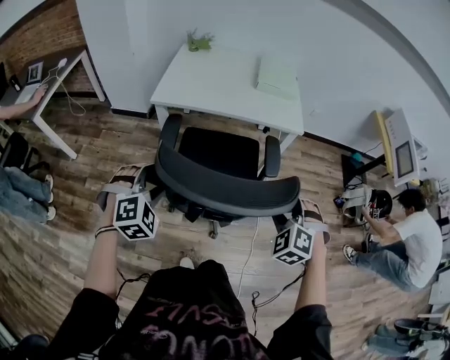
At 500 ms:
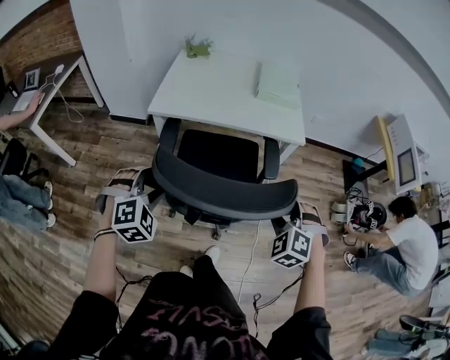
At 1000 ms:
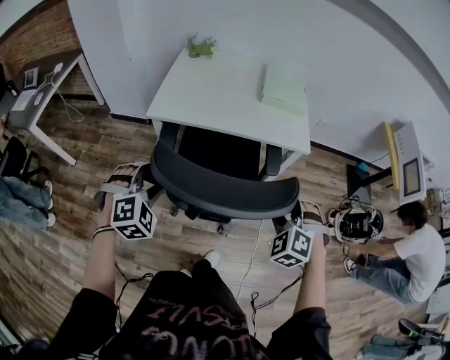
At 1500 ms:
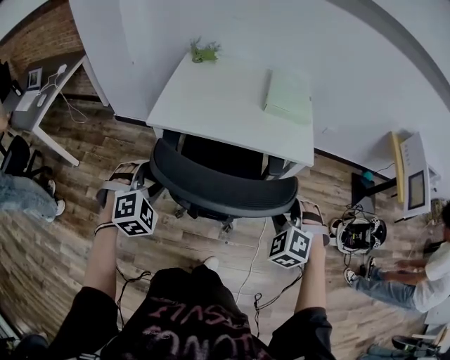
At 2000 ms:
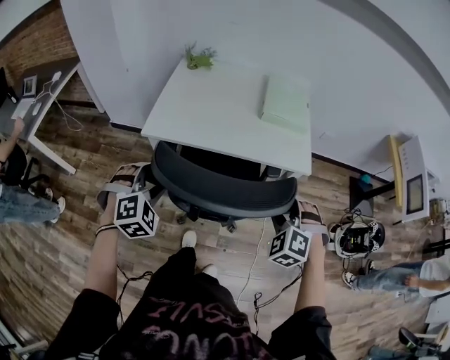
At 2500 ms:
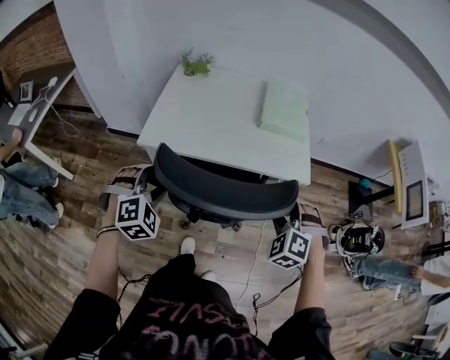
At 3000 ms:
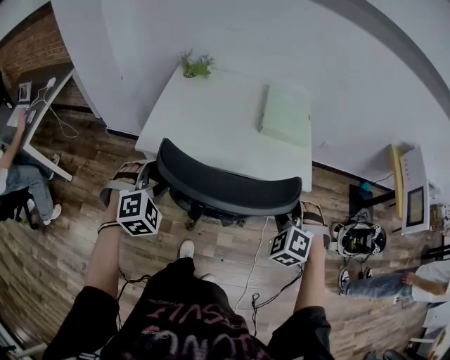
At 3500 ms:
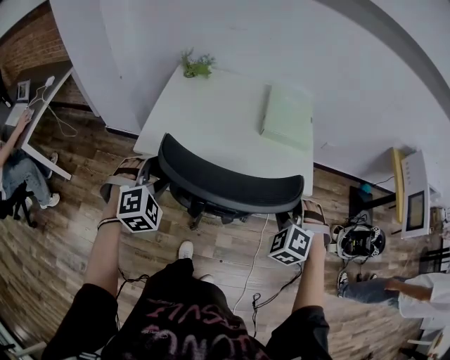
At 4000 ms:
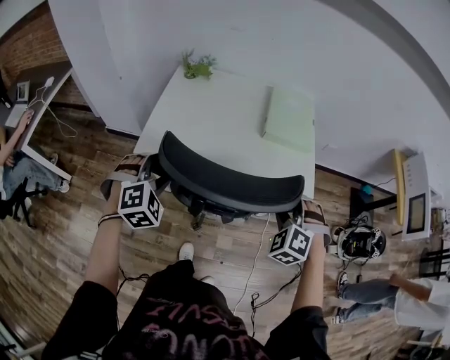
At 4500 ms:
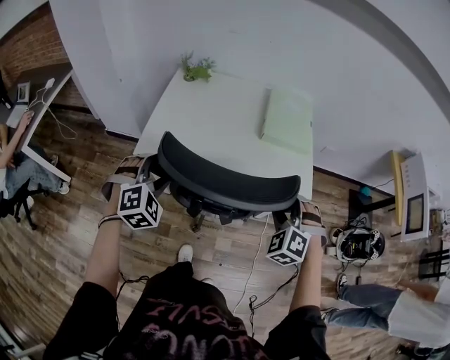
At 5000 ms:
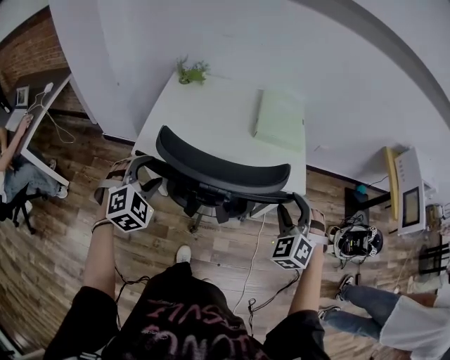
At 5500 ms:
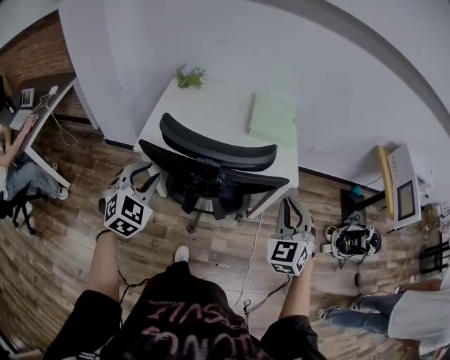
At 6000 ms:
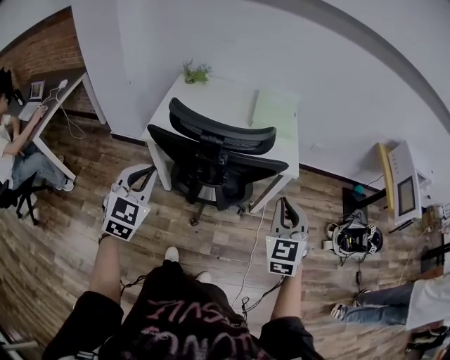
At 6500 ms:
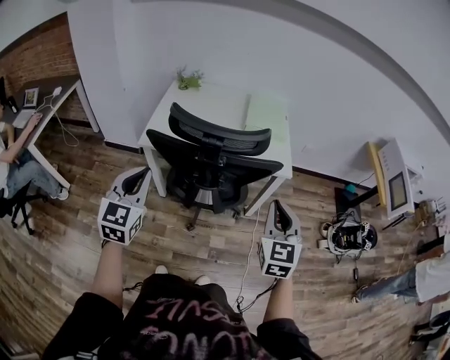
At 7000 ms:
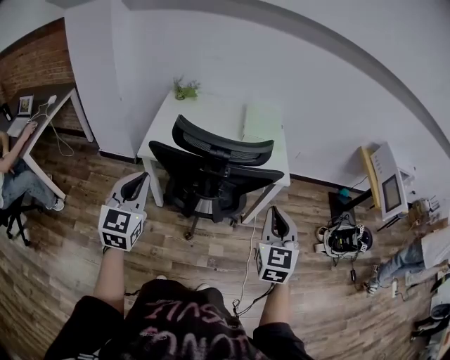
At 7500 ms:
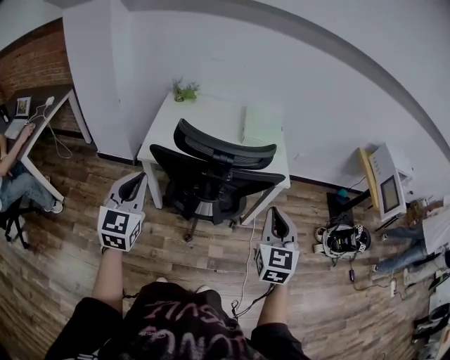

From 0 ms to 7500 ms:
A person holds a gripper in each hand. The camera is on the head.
From 0 ms to 2000 ms: The two grippers go roughly 20 cm forward.
From 2000 ms to 4000 ms: Both grippers move forward, approximately 15 cm.
From 4000 ms to 5500 ms: The right gripper travels backward, upward and to the right by some 15 cm, turns by roughly 40 degrees, and closes its fingers; the left gripper moves backward and upward, approximately 10 cm, turns by roughly 30 degrees, and closes its fingers.
From 5500 ms to 7500 ms: The right gripper travels backward and to the left by some 10 cm, and swivels about 30 degrees, while the left gripper moves backward, upward and to the left, about 10 cm, turns by about 40 degrees, and closes its fingers.

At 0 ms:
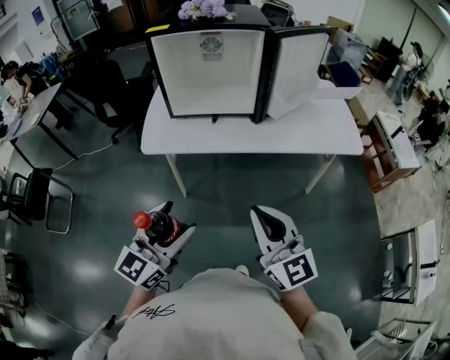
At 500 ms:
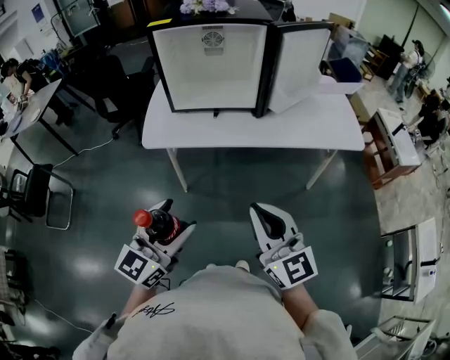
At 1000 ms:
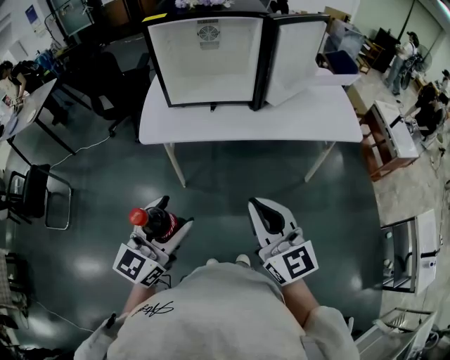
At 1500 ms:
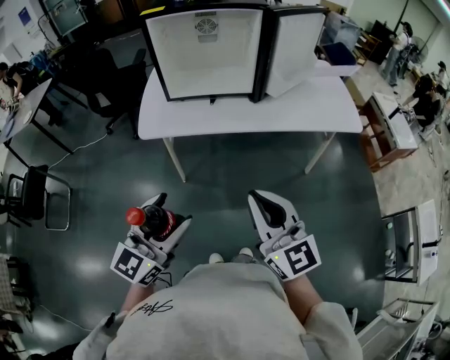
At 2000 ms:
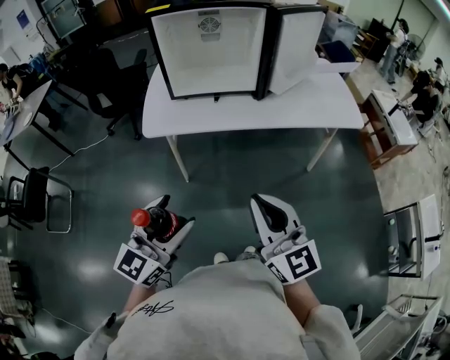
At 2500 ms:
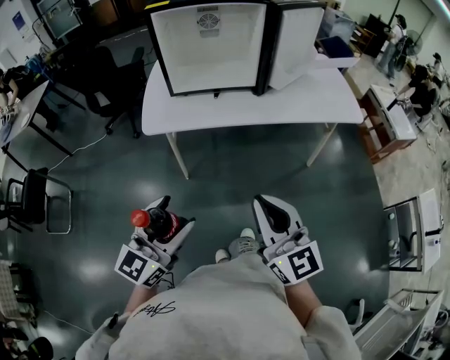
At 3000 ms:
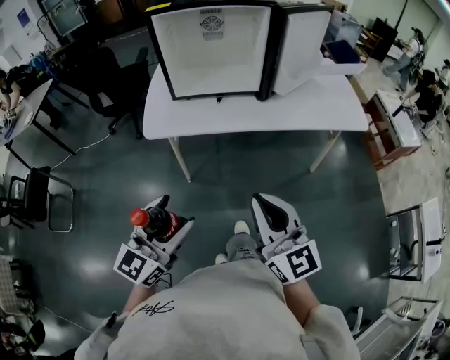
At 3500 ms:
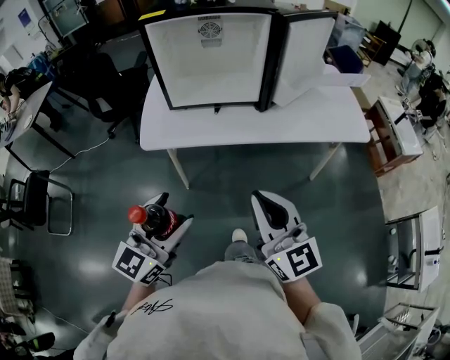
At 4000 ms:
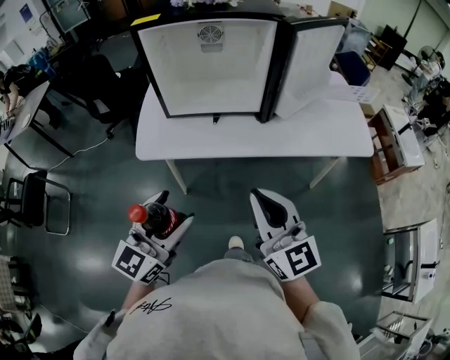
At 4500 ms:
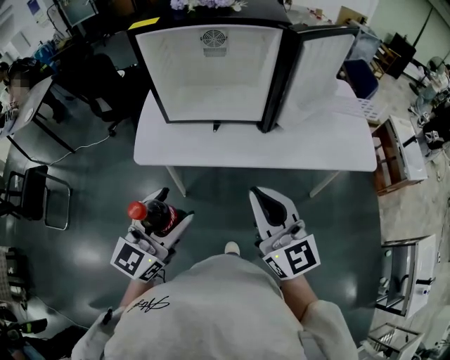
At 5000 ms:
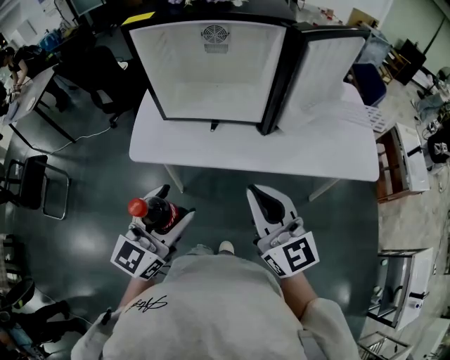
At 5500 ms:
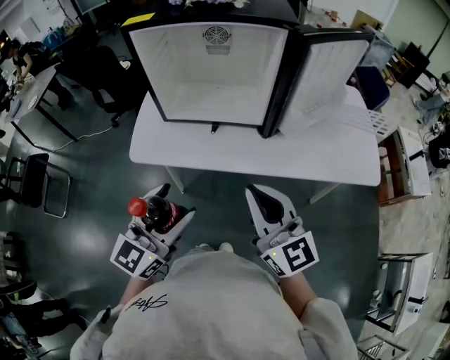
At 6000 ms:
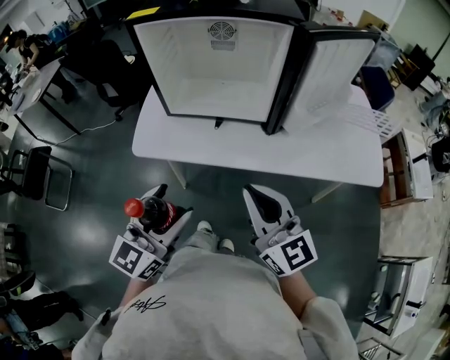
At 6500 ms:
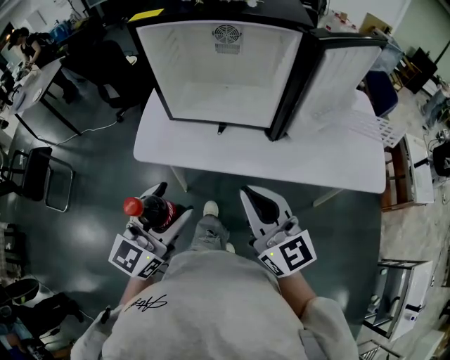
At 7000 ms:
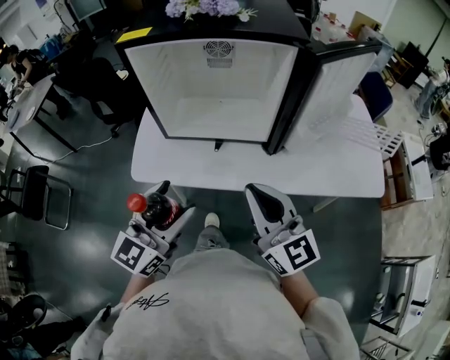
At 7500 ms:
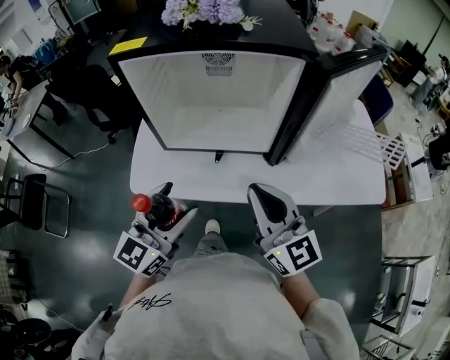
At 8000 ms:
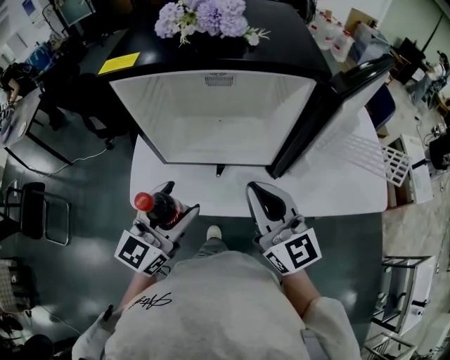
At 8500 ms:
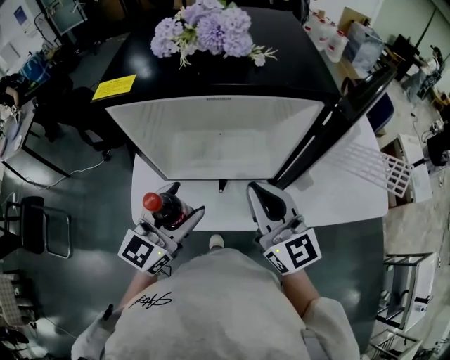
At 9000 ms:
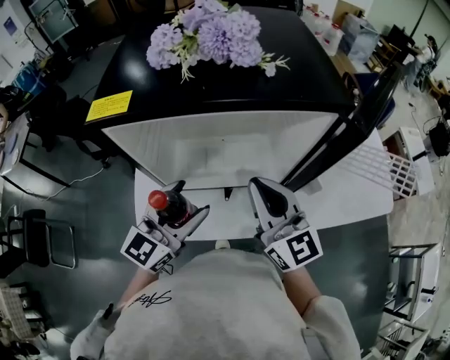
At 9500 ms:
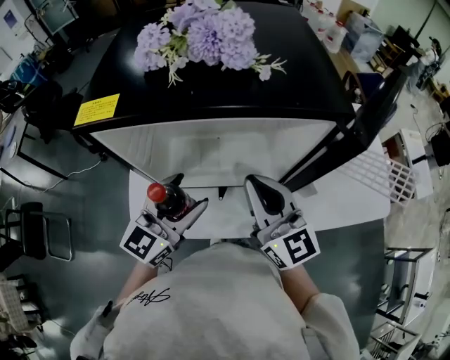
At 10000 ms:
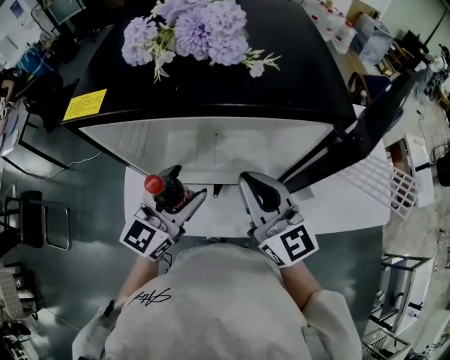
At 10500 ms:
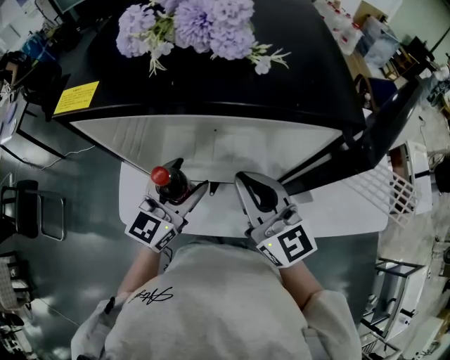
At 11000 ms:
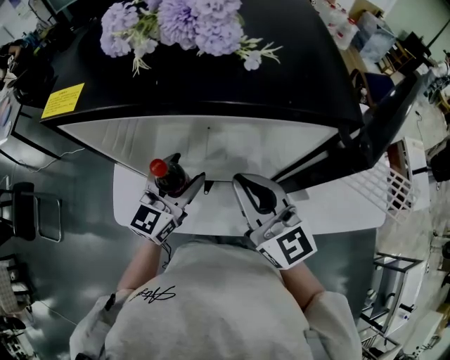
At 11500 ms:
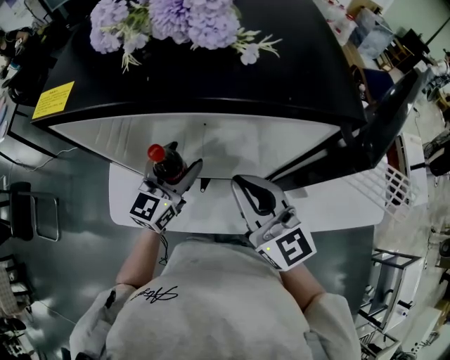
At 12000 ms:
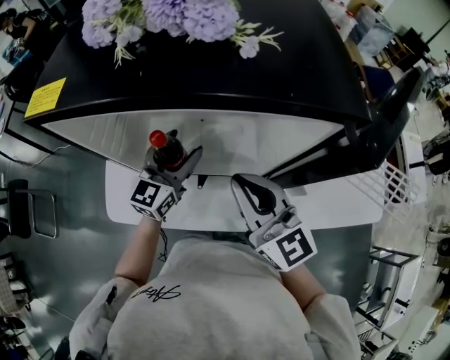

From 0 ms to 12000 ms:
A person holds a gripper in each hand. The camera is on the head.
From 0 ms to 2000 ms: The left gripper ends up about 5 cm from where it was. The right gripper moves approximately 5 cm.
From 2000 ms to 4000 ms: Both grippers move forward, roughly 15 cm.
From 4000 ms to 6000 ms: Both grippers move forward, about 5 cm.
From 6000 ms to 8000 ms: Both grippers travel together forward, approximately 20 cm.
From 8000 ms to 10000 ms: The two grippers go roughly 10 cm forward.
From 10000 ms to 12000 ms: The left gripper travels forward and downward by some 15 cm.

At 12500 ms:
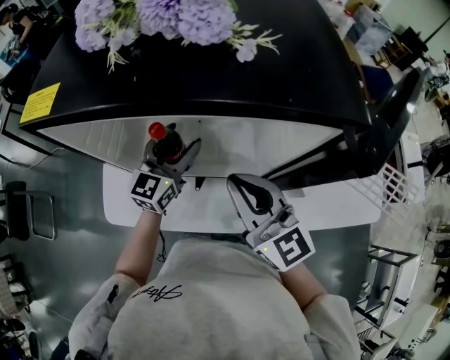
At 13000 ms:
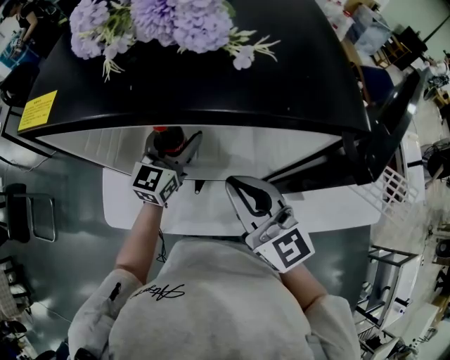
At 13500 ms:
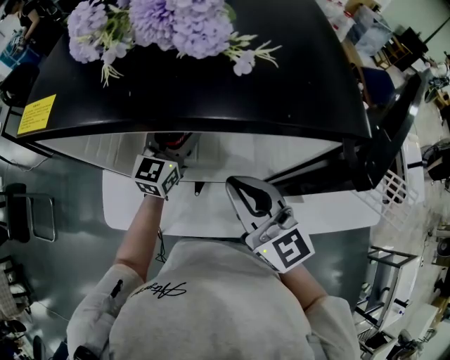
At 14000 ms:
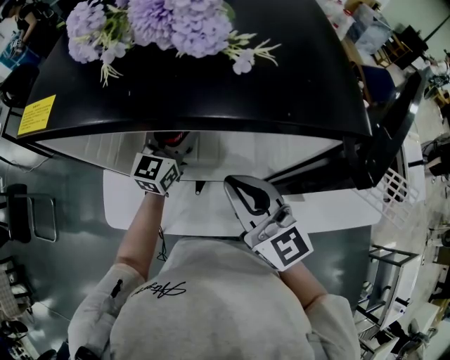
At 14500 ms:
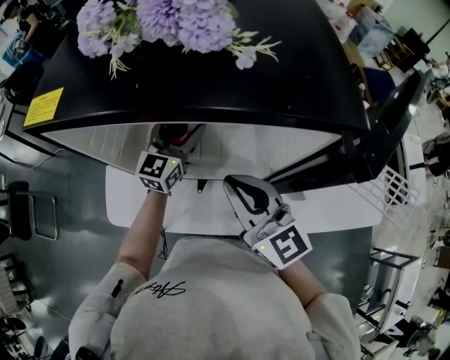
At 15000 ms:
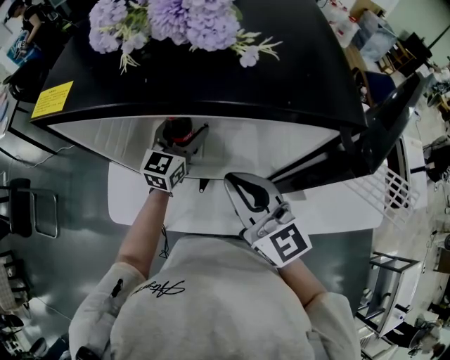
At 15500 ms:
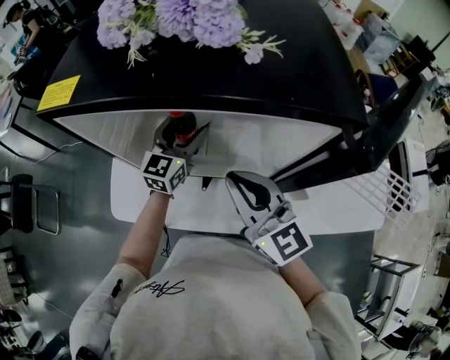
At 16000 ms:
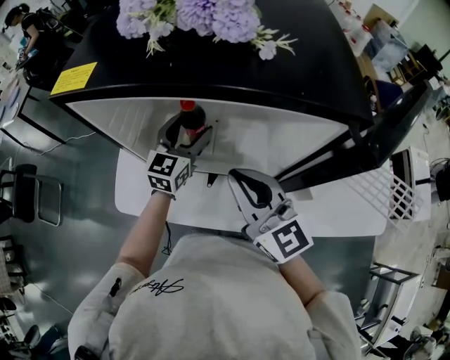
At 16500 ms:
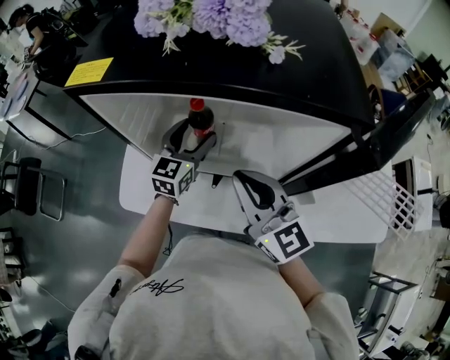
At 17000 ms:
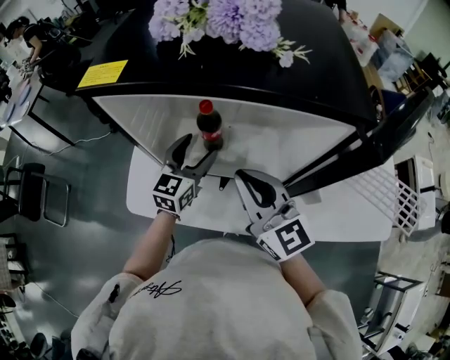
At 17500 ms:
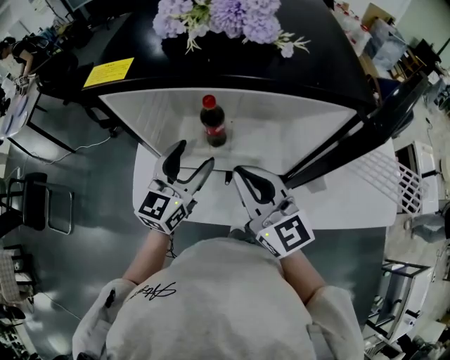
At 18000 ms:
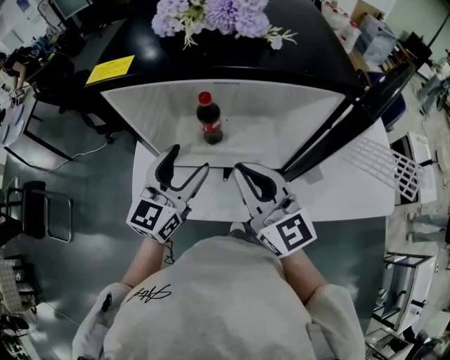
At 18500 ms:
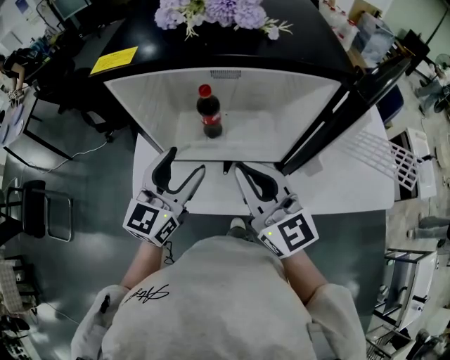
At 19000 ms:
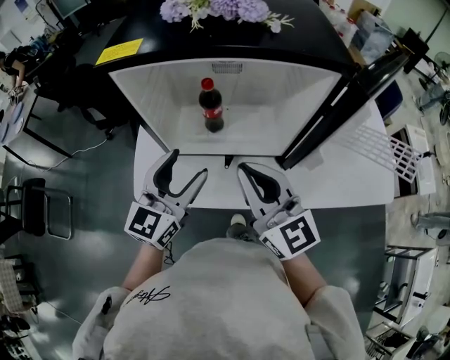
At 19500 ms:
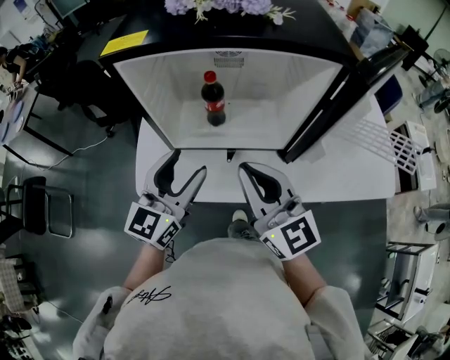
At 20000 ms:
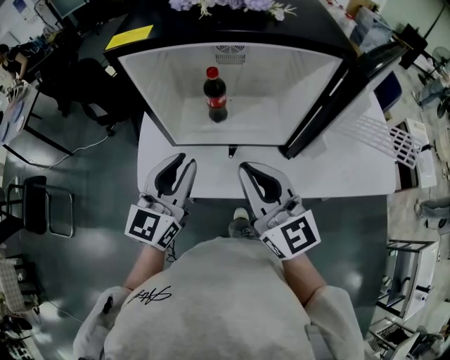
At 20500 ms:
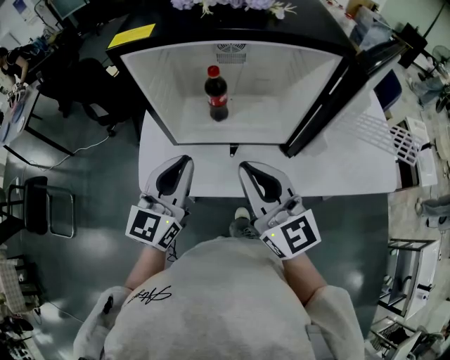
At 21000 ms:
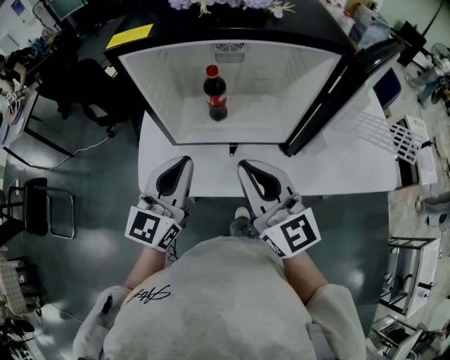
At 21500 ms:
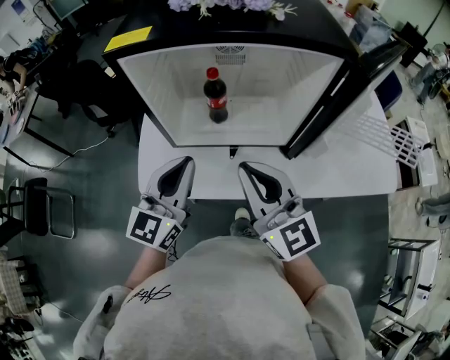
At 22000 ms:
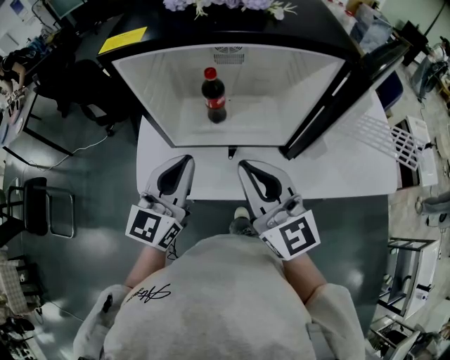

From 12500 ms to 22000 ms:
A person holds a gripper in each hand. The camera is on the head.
From 12500 ms to 14500 ms: The left gripper goes some 5 cm forward.
From 14500 ms to 16500 ms: The left gripper ends up approximately 5 cm from where it was.
From 16500 ms to 18000 ms: The left gripper moves backward and upward, approximately 15 cm.
From 18000 ms to 20000 ms: Both grippers travel together backward, some 10 cm. The left gripper closes.
From 20000 ms to 22000 ms: Neither gripper changes place.
